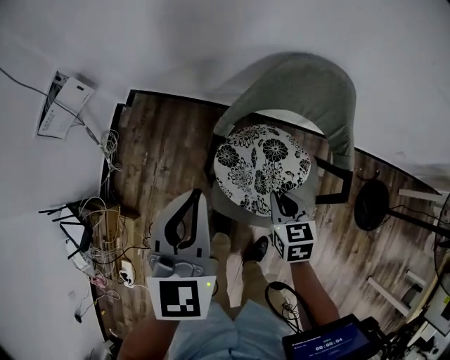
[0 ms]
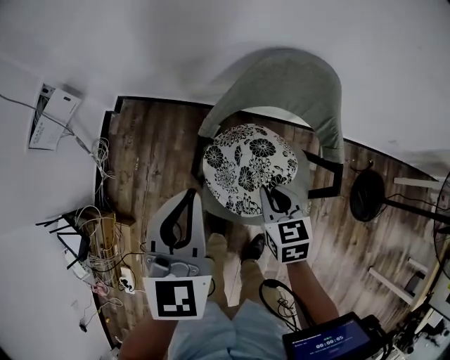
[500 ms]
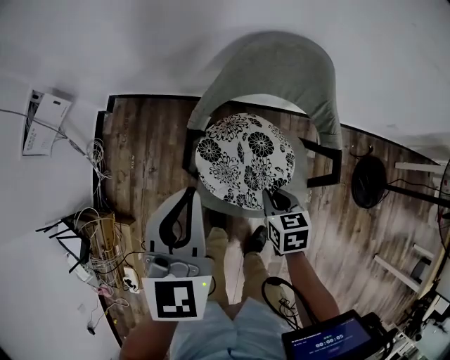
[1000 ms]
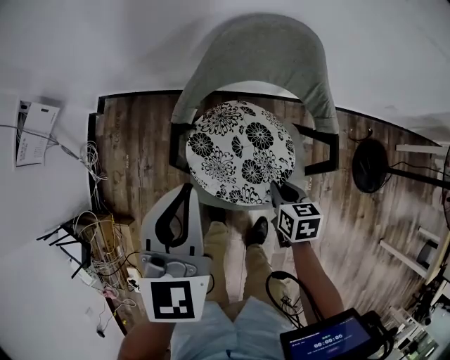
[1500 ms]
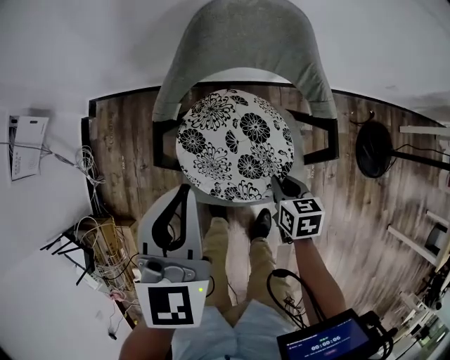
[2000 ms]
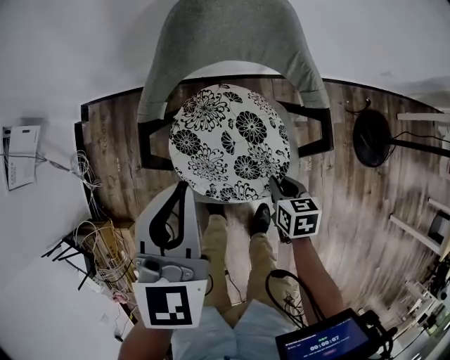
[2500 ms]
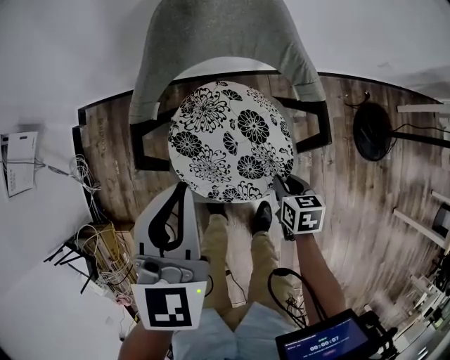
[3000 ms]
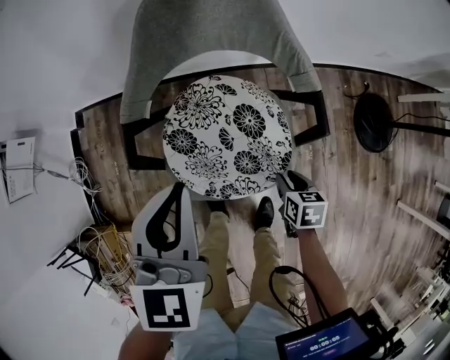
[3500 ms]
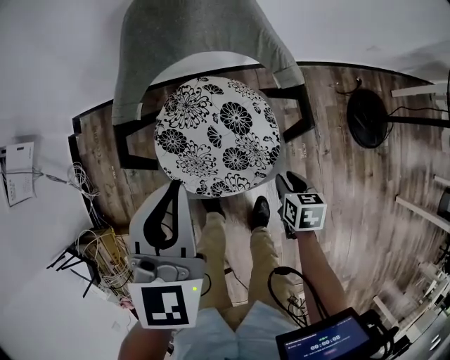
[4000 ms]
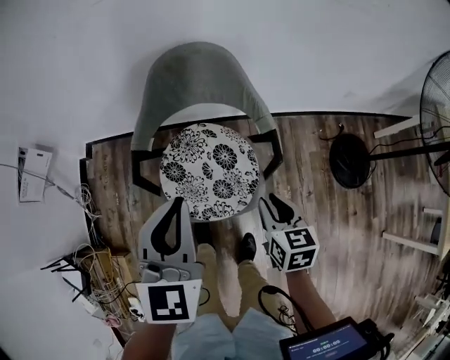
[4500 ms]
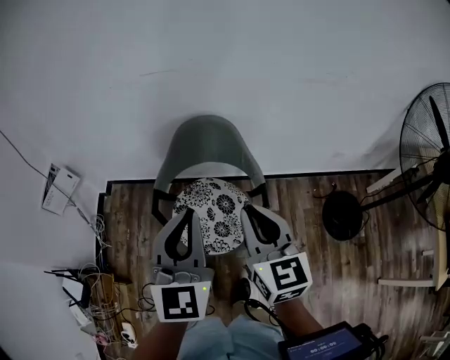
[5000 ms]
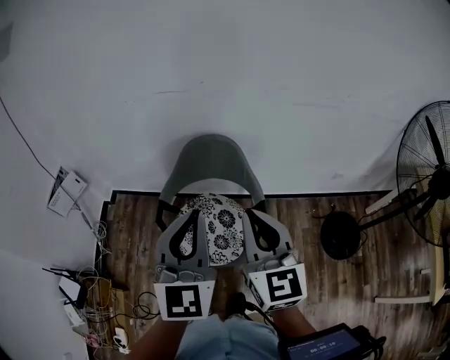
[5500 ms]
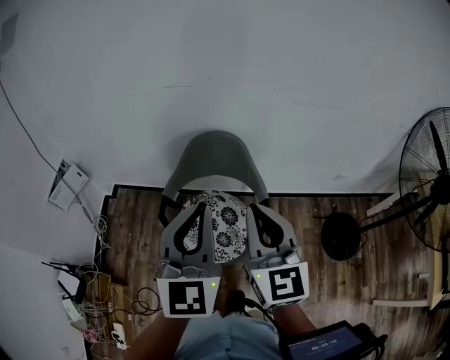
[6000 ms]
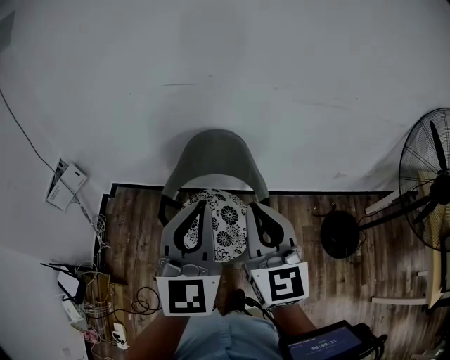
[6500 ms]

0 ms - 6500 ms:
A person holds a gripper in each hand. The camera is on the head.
0 ms - 2000 ms: The right gripper moves downward, to the right and backward, about 15 cm, and rotates about 20 degrees. Meanwhile the left gripper travels to the right and downward by about 10 cm.
2000 ms - 4500 ms: The left gripper goes about 10 cm upward and to the right. Meanwhile the right gripper heads upward, covering about 15 cm.
4500 ms - 6500 ms: The right gripper heads upward, covering approximately 35 cm, angles its fingers upward, by about 40 degrees, and closes. The left gripper shifts approximately 20 cm upward.

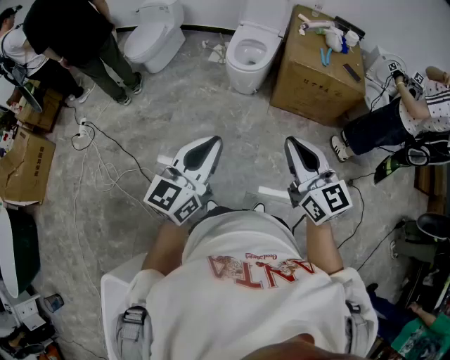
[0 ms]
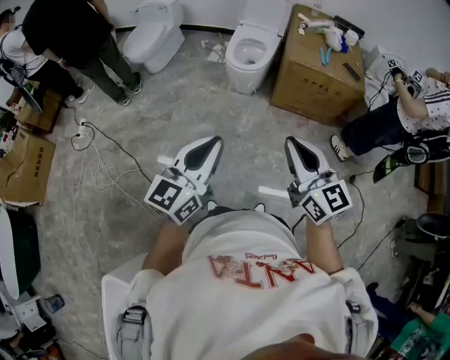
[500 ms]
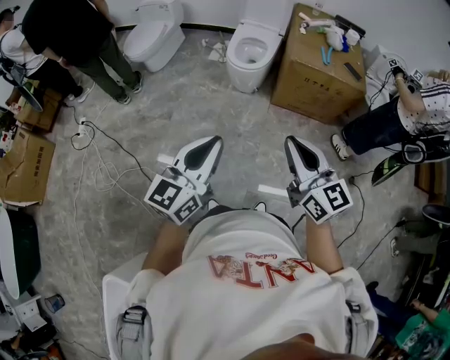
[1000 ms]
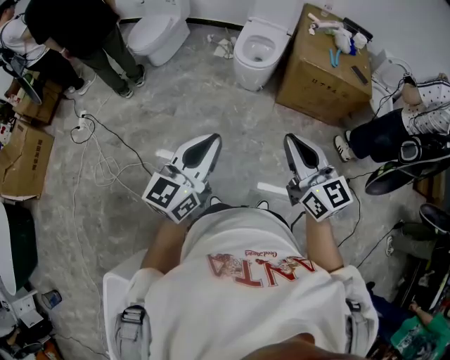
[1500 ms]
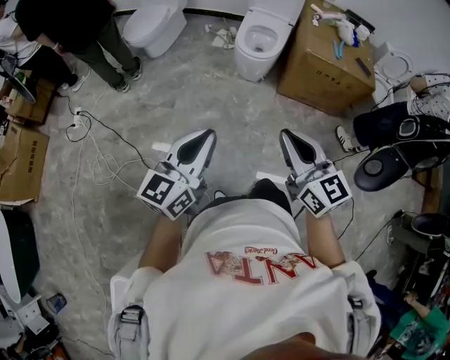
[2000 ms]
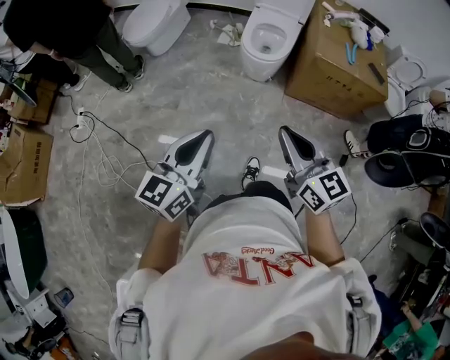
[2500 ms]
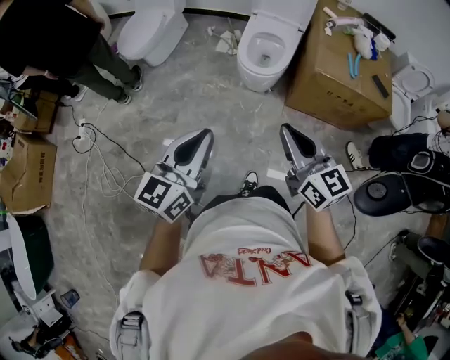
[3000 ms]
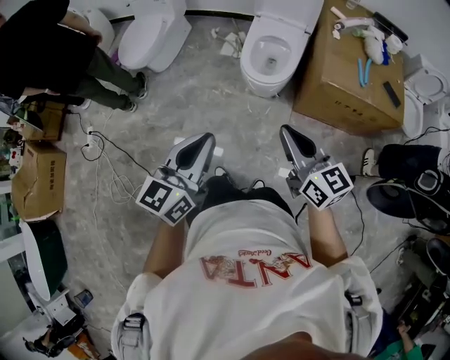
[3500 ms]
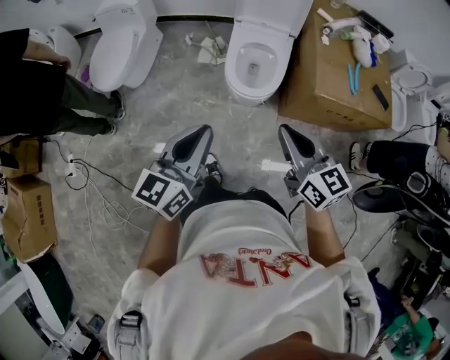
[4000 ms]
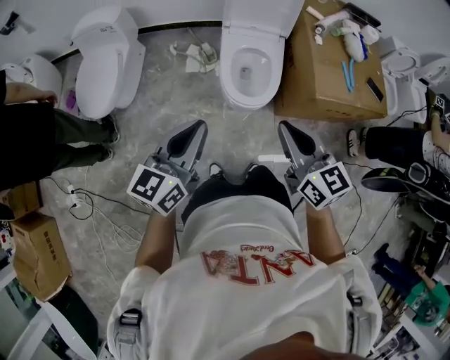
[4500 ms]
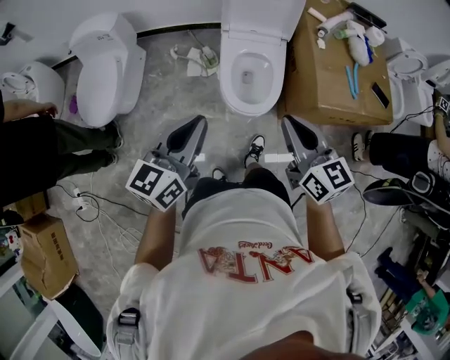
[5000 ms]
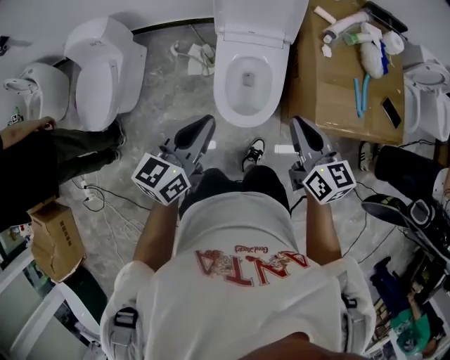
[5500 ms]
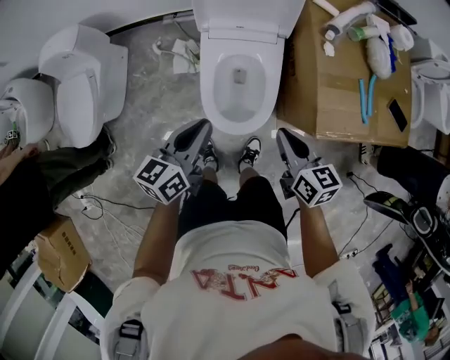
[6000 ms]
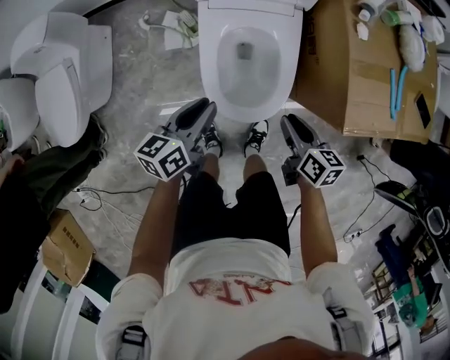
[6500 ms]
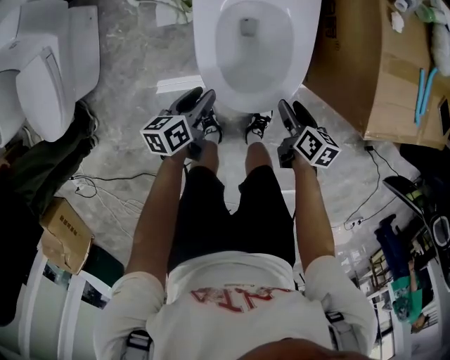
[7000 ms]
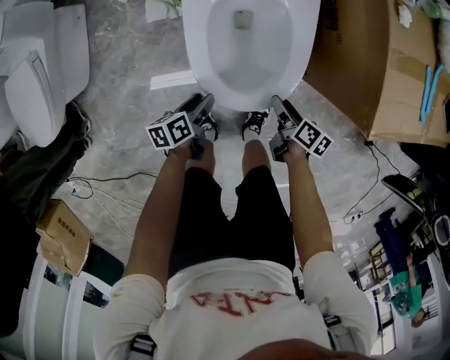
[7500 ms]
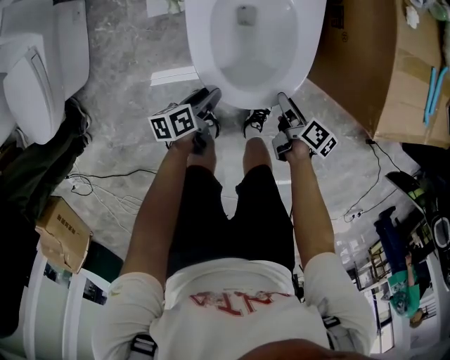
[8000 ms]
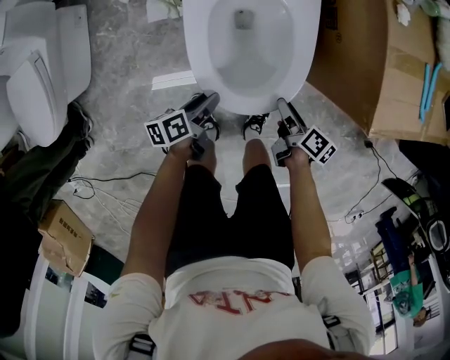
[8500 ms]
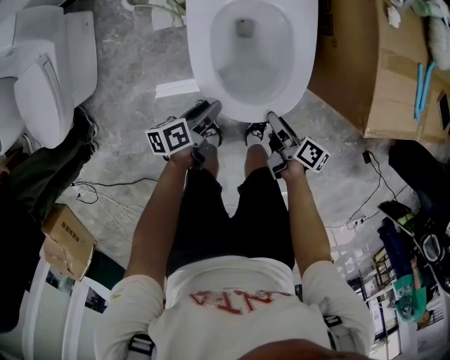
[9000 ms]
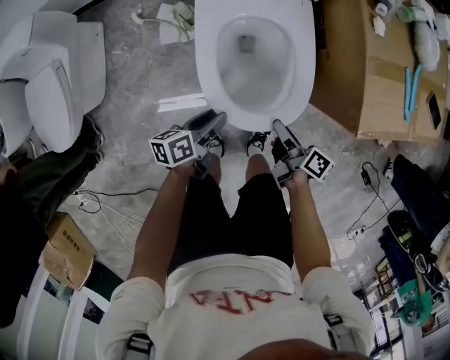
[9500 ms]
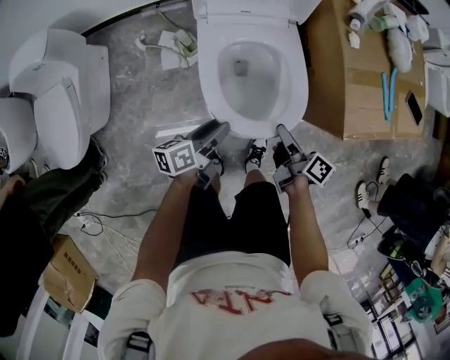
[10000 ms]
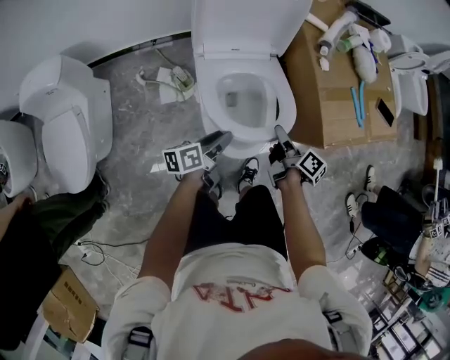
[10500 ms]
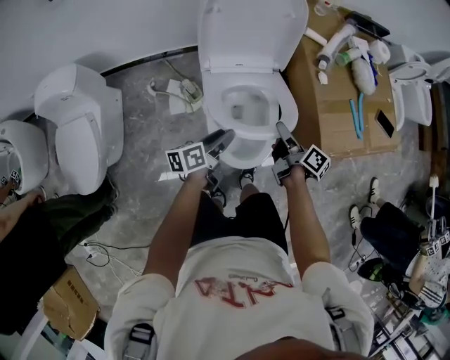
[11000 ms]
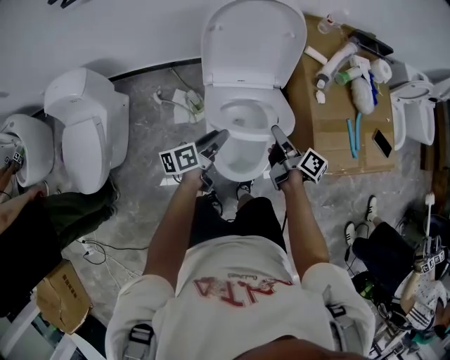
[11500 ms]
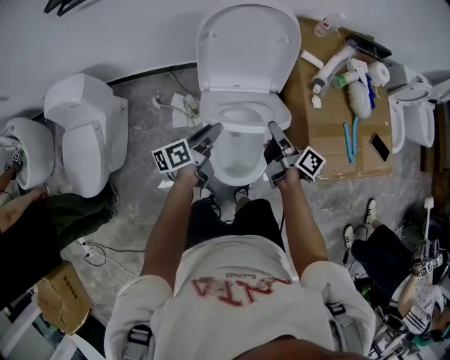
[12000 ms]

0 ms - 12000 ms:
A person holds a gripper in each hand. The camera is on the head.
0 ms - 2000 ms: Both grippers travel together to the left, approximately 10 cm.
2000 ms - 4000 ms: Both grippers are carried forward, roughly 50 cm.
4000 ms - 6000 ms: Both grippers move forward and downward, roughly 40 cm. The left gripper swivels about 20 degrees. The right gripper swivels approximately 30 degrees.
6000 ms - 8000 ms: The grippers both shift downward by about 40 cm. The right gripper rotates around the line of its fingers by about 50 degrees, clockwise from behind, and opens, while the left gripper turns by roughly 40 degrees, and opens its fingers.
8000 ms - 10000 ms: The grippers both shift upward by roughly 20 cm. The left gripper changes its angle by about 20 degrees. The right gripper turns by roughly 20 degrees.
10000 ms - 12000 ms: The left gripper heads upward and forward, covering approximately 20 cm. The right gripper is displaced forward and upward by some 25 cm.

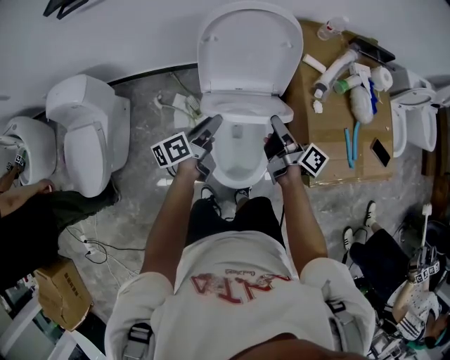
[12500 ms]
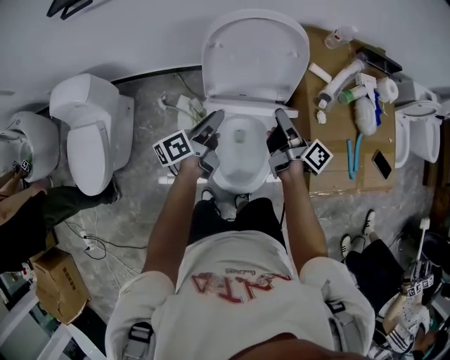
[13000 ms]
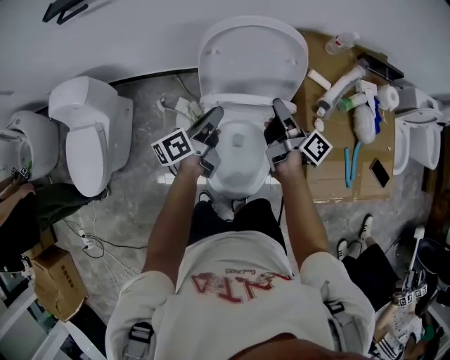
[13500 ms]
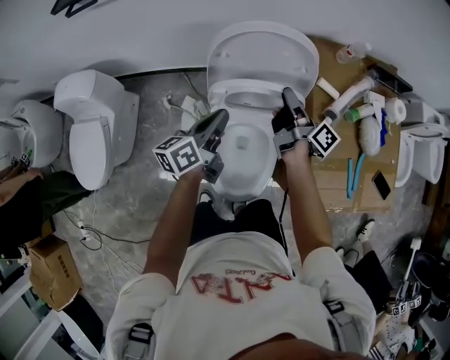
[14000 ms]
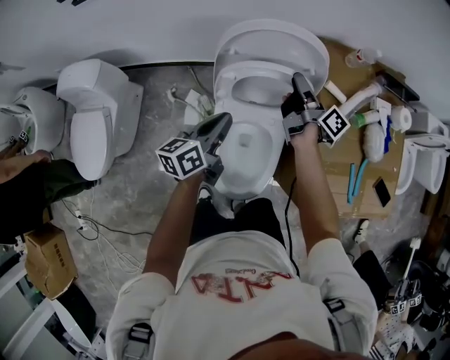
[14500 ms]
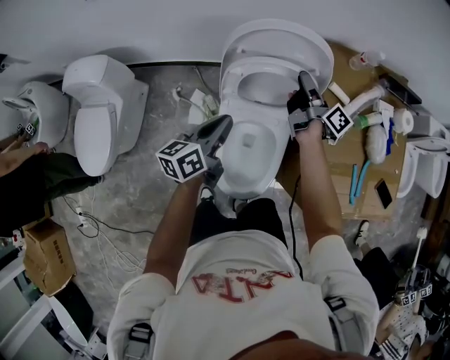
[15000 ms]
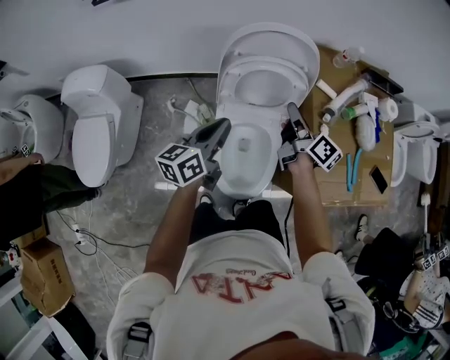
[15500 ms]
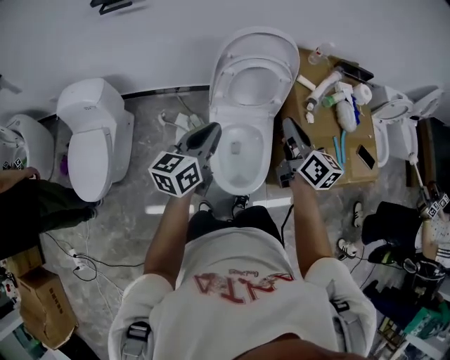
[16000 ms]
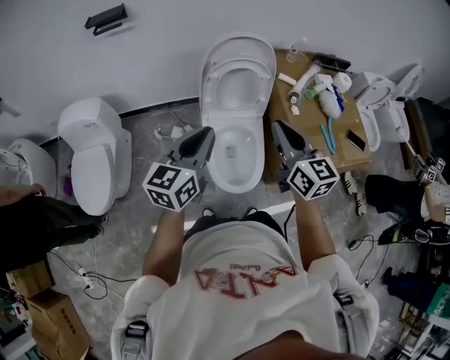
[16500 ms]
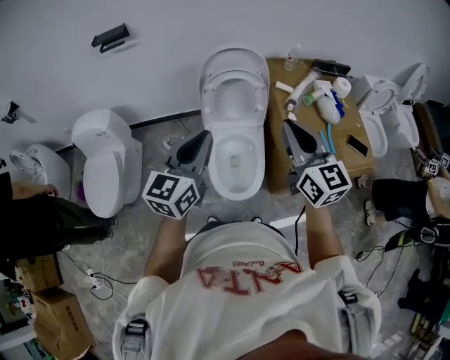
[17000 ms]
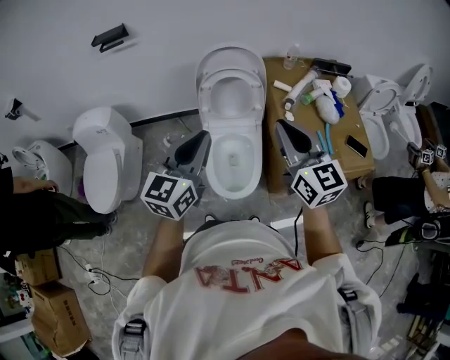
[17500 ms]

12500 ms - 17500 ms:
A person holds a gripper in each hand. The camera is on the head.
12500 ms - 15000 ms: The right gripper heads forward, covering about 20 cm. Meanwhile the left gripper heads upward, covering some 5 cm, swivels some 20 degrees, and closes its fingers.
15000 ms - 17500 ms: The right gripper shifts approximately 50 cm backward and upward, twists approximately 70 degrees counterclockwise, seen from behind, and closes up. Meanwhile the left gripper moves upward and backward, roughly 35 cm, and rotates about 40 degrees.

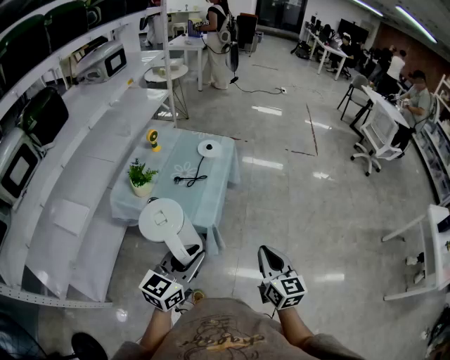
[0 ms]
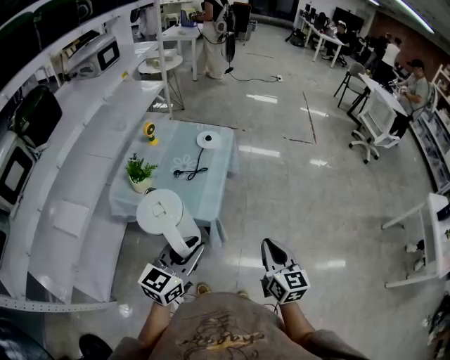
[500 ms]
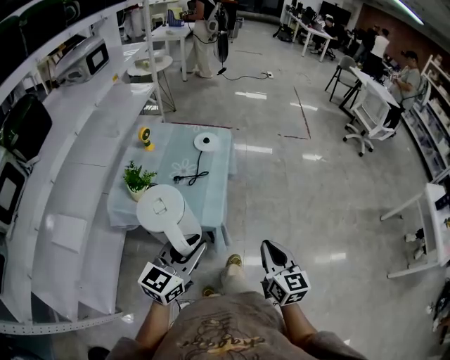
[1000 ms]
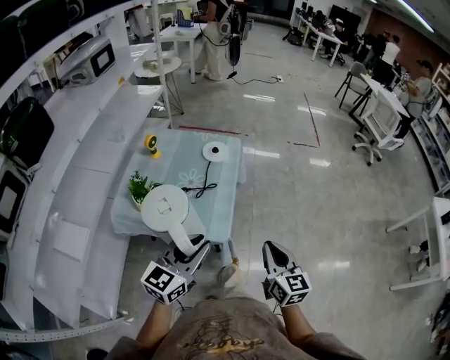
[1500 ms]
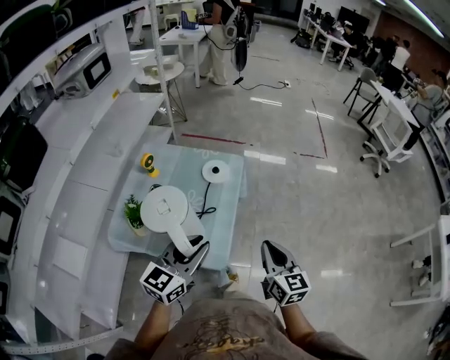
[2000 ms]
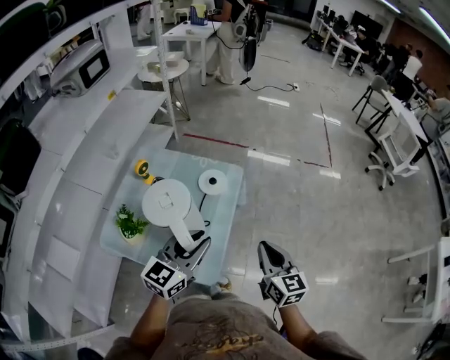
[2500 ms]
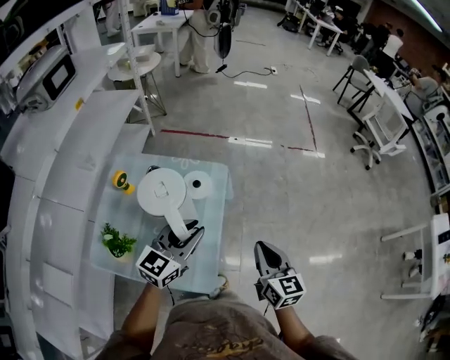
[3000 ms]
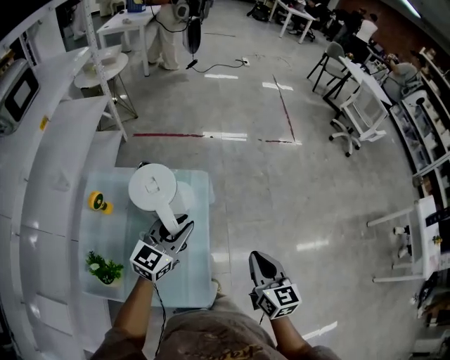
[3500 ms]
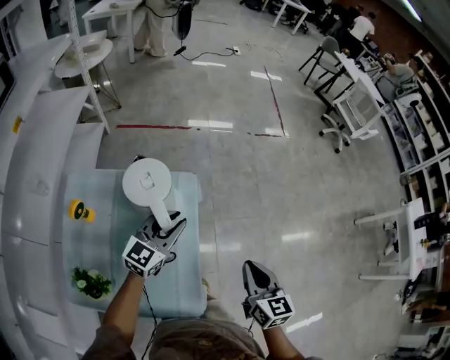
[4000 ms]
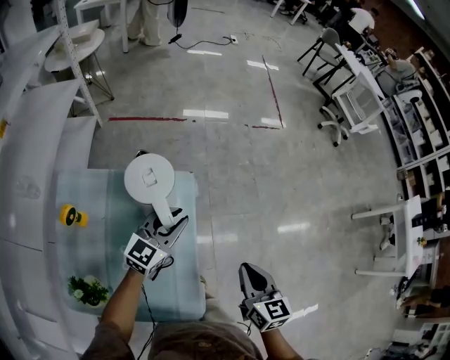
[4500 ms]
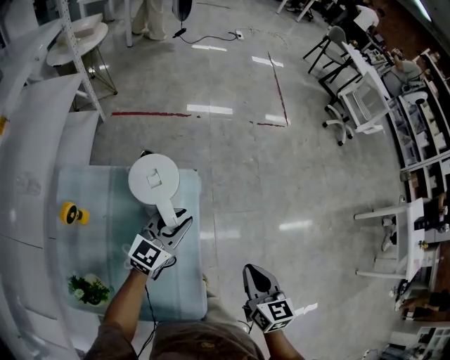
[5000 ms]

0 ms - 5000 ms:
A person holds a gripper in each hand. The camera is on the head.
0 ms - 2500 ms: The grippers both shift forward by about 35 cm.
2500 ms - 5000 ms: The right gripper moves forward and downward, some 15 cm, and rotates about 30 degrees. The left gripper travels forward and downward by some 35 cm, and changes its angle by some 20 degrees.
